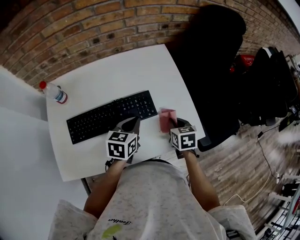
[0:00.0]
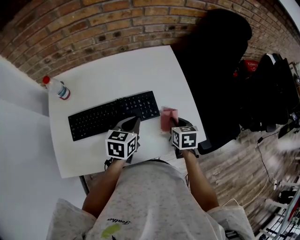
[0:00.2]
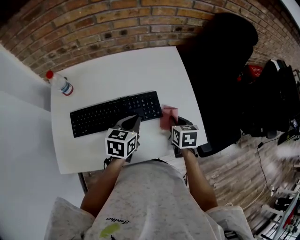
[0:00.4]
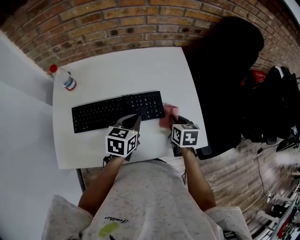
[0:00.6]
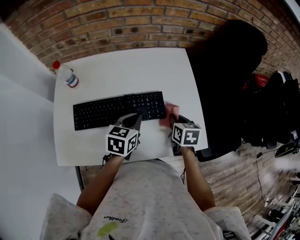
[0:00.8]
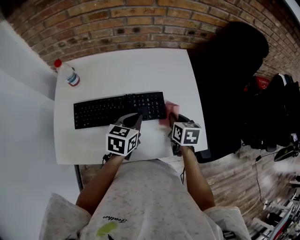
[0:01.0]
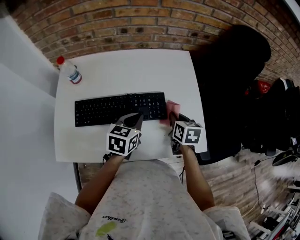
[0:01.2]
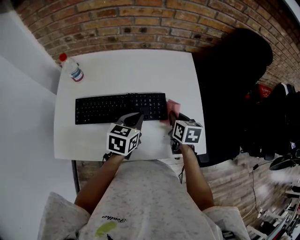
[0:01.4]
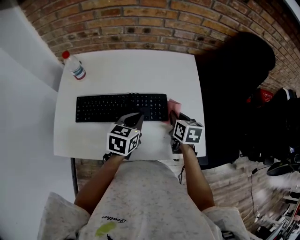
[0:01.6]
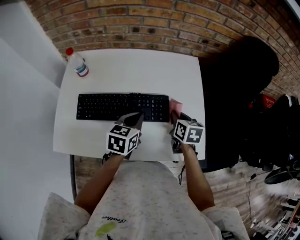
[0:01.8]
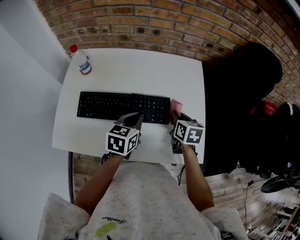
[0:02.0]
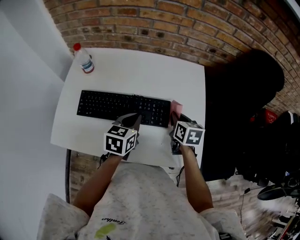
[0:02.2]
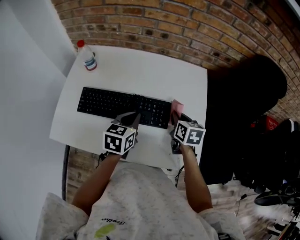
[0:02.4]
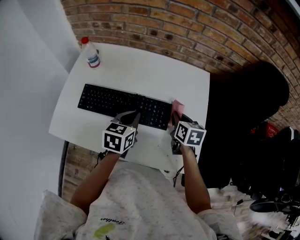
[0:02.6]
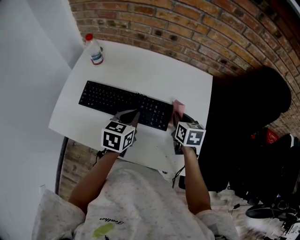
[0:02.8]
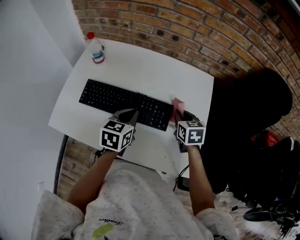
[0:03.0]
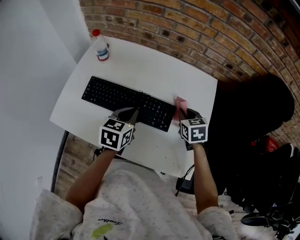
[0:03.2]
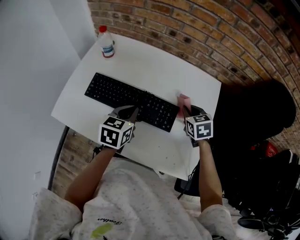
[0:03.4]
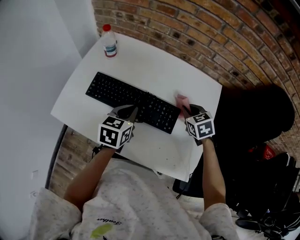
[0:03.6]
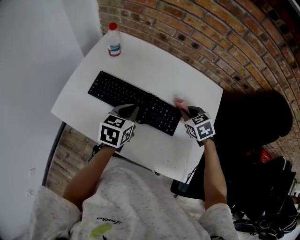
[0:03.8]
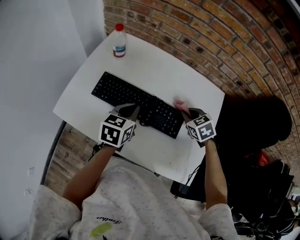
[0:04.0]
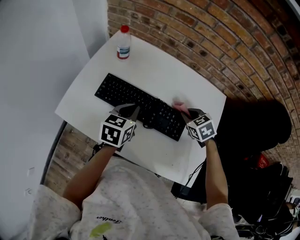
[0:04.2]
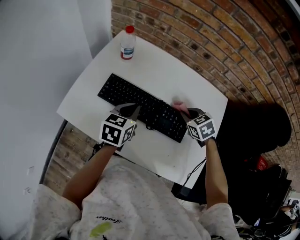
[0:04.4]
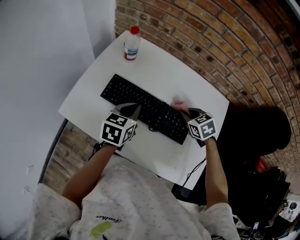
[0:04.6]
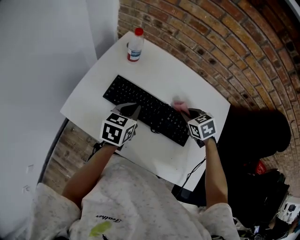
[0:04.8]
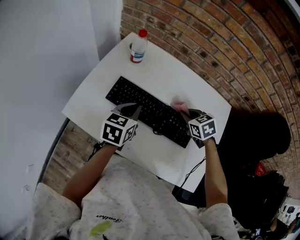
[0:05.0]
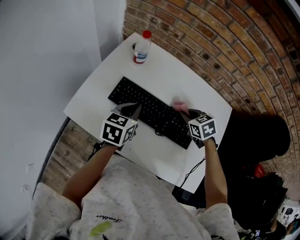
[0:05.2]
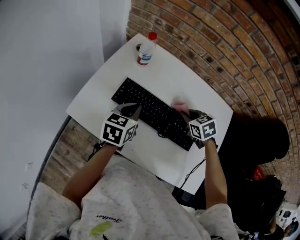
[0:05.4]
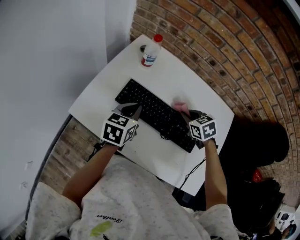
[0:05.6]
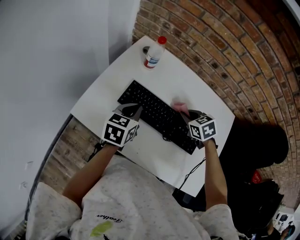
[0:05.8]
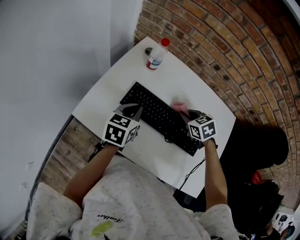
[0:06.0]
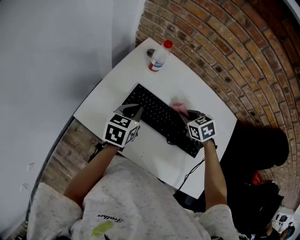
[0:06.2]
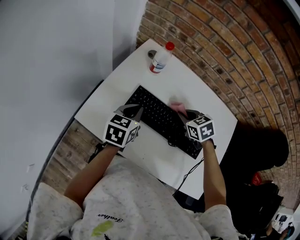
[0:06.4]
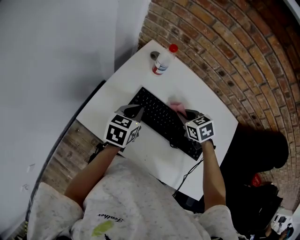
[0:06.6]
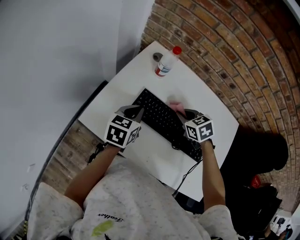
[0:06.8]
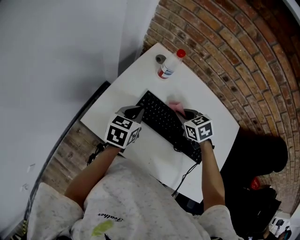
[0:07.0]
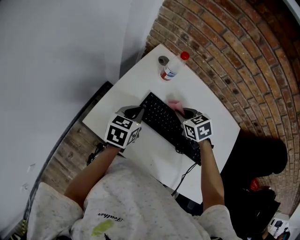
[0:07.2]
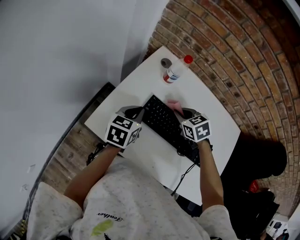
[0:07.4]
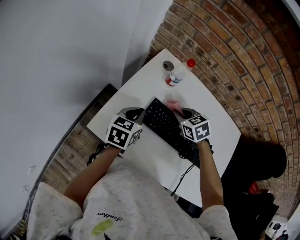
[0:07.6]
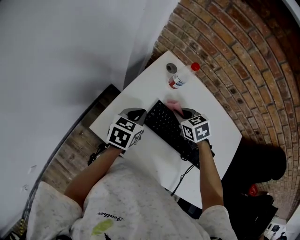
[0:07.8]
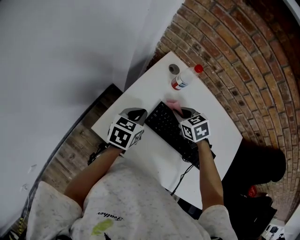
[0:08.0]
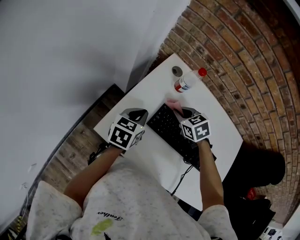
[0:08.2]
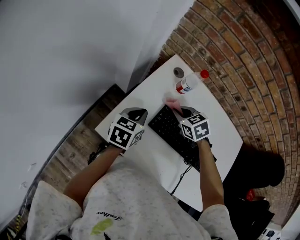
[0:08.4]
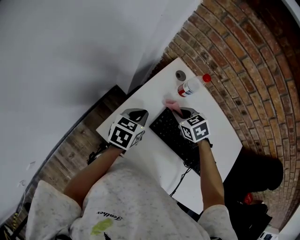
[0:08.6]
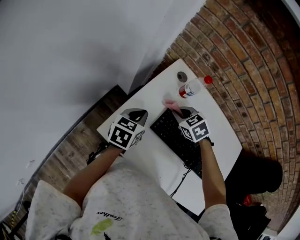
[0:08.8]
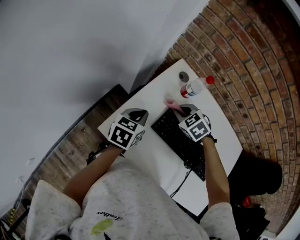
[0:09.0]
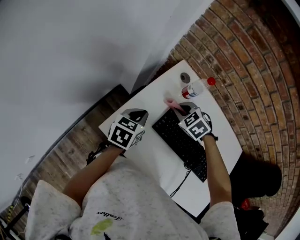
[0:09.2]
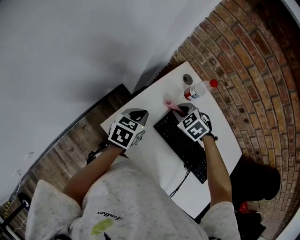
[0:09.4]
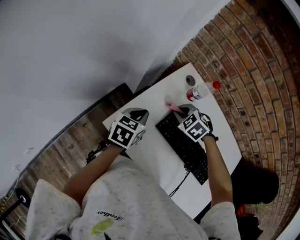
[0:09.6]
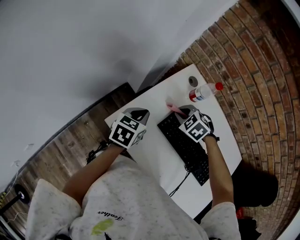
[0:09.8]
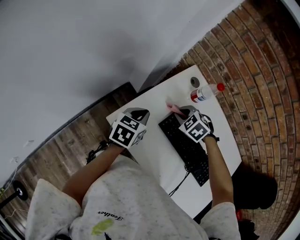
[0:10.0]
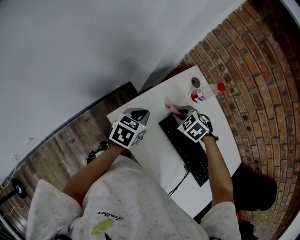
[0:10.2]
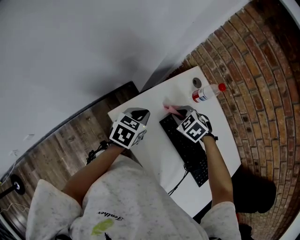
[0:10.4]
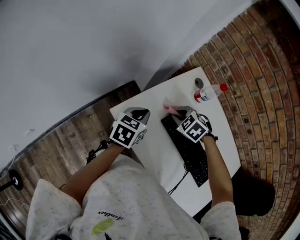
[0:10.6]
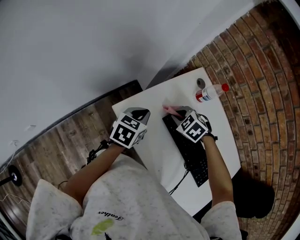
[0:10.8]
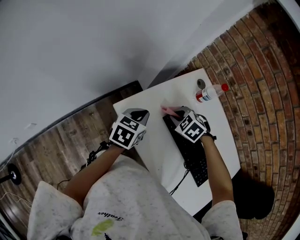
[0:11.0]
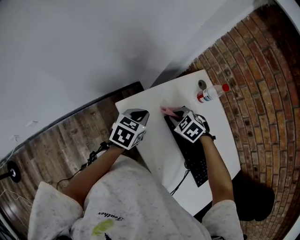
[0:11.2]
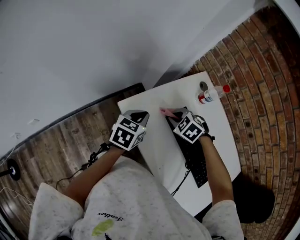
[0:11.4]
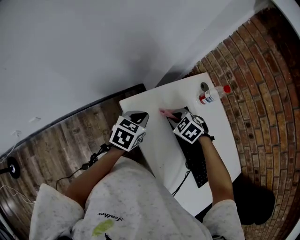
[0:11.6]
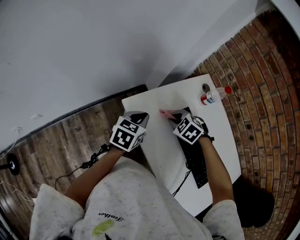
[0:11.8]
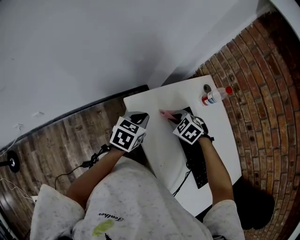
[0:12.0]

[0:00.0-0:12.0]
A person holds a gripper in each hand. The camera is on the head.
0:00.0 to 0:01.6: The right gripper goes roughly 10 cm forward and to the left.
0:01.6 to 0:03.0: The right gripper is displaced forward by some 5 cm, and changes its angle by some 30 degrees.
0:03.0 to 0:04.4: Both grippers travel together to the left, roughly 10 cm. The right gripper rotates some 40 degrees.
0:04.4 to 0:06.0: The right gripper moves to the left and forward, roughly 15 cm. Meanwhile the left gripper moves to the left, roughly 10 cm.
0:06.0 to 0:07.6: The left gripper is displaced to the left by roughly 10 cm; the right gripper travels to the left and forward by approximately 15 cm.
0:07.6 to 0:09.0: The grippers both shift to the left by roughly 5 cm. The right gripper turns by roughly 30 degrees.
0:09.0 to 0:10.4: The left gripper changes place by approximately 5 cm, while the right gripper shifts by roughly 5 cm, and changes its angle by about 20 degrees.
0:10.4 to 0:12.0: The left gripper heads backward, covering roughly 10 cm. Meanwhile the right gripper travels backward and to the left by some 10 cm.

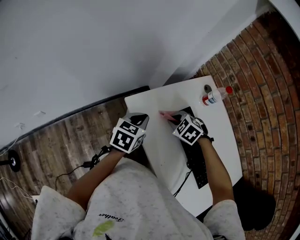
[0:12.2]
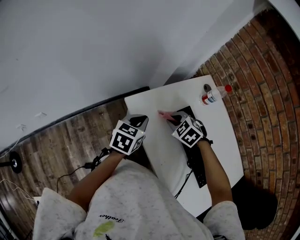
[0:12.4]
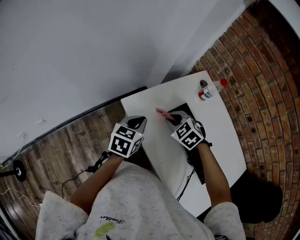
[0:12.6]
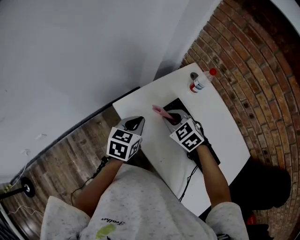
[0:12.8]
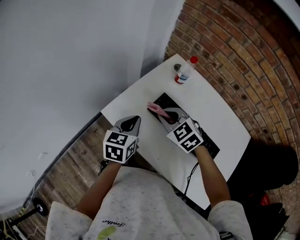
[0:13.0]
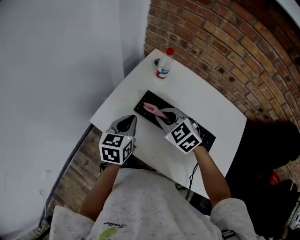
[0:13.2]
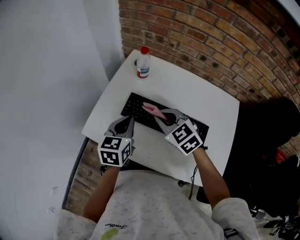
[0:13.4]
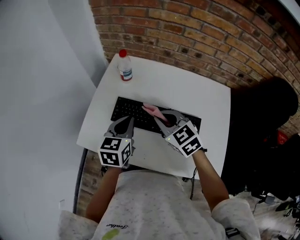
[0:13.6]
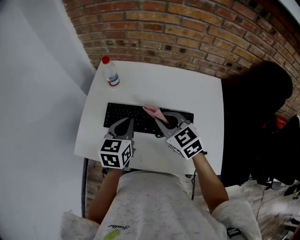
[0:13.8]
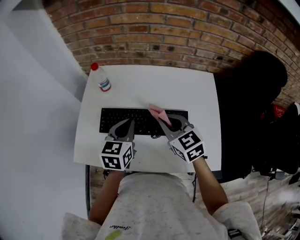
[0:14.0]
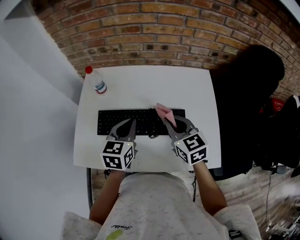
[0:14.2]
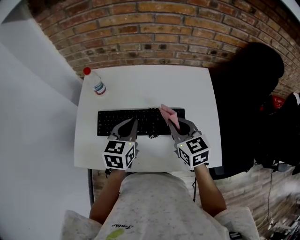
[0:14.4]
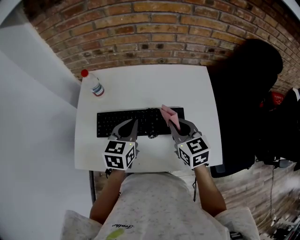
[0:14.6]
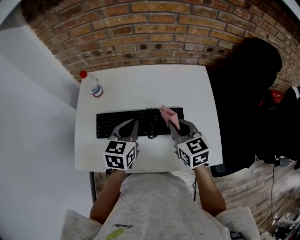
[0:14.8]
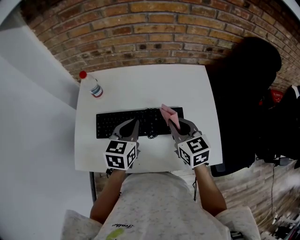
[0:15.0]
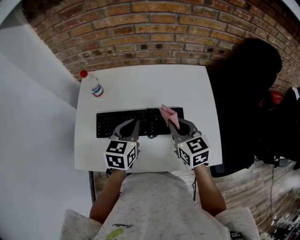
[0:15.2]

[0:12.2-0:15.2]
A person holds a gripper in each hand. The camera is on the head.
0:12.2 to 0:13.8: The left gripper moves approximately 25 cm, and swivels some 40 degrees; the right gripper ends up approximately 30 cm from where it was, and tips its fingers upward by about 40 degrees.
0:13.8 to 0:15.2: Both grippers travel together to the right, roughly 10 cm. The right gripper swivels roughly 30 degrees.

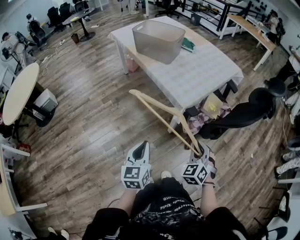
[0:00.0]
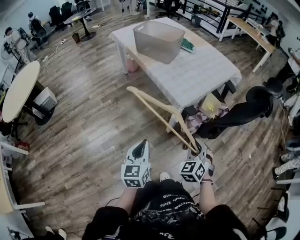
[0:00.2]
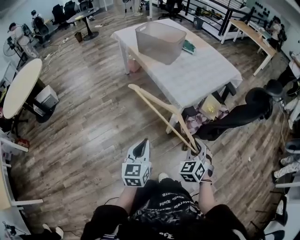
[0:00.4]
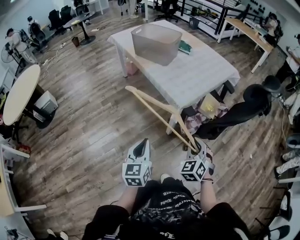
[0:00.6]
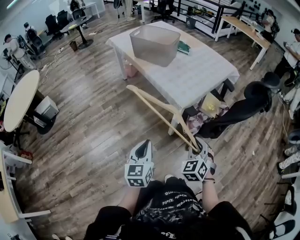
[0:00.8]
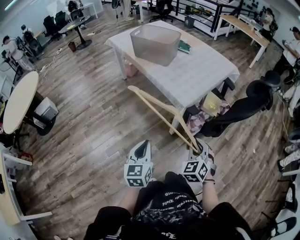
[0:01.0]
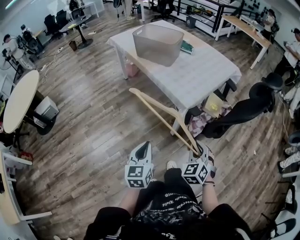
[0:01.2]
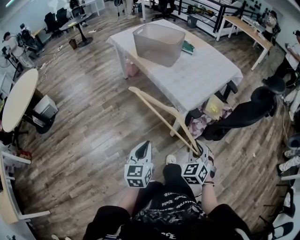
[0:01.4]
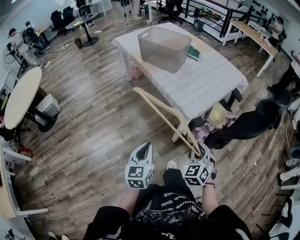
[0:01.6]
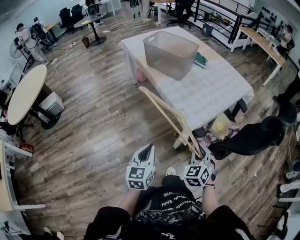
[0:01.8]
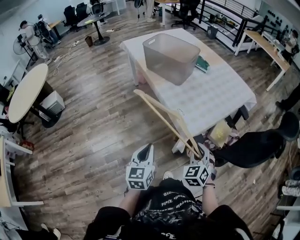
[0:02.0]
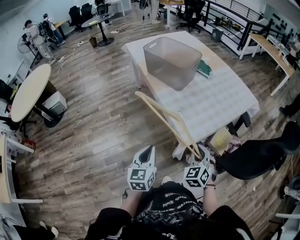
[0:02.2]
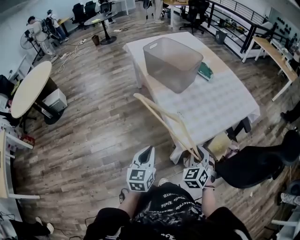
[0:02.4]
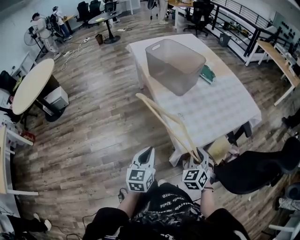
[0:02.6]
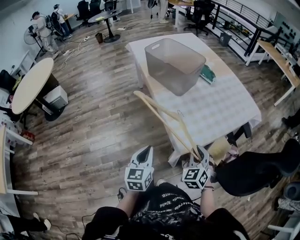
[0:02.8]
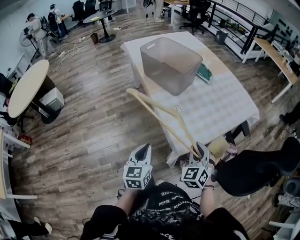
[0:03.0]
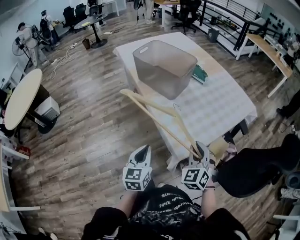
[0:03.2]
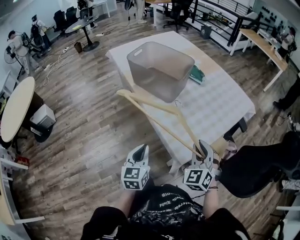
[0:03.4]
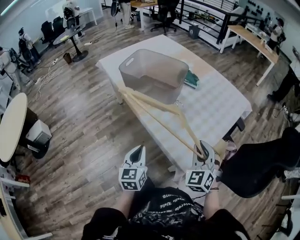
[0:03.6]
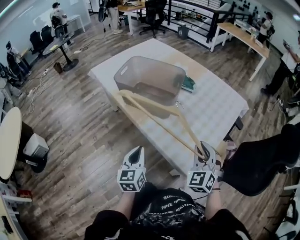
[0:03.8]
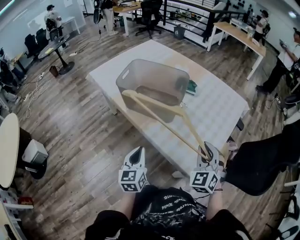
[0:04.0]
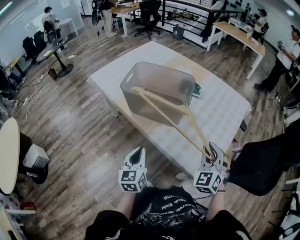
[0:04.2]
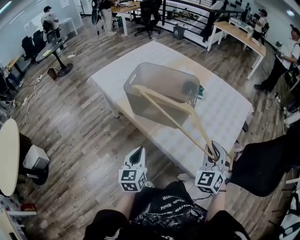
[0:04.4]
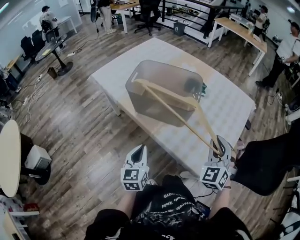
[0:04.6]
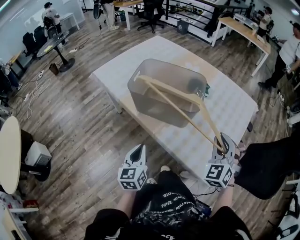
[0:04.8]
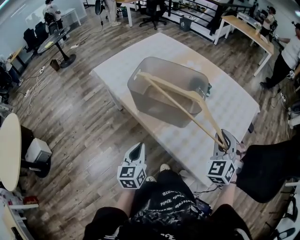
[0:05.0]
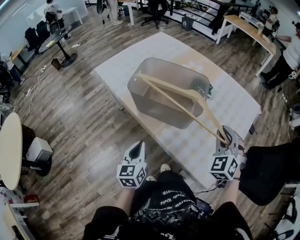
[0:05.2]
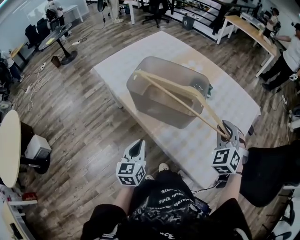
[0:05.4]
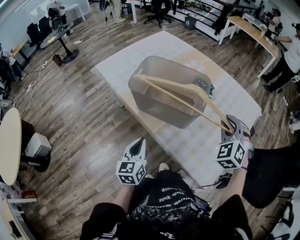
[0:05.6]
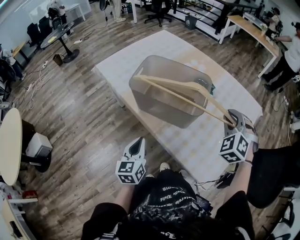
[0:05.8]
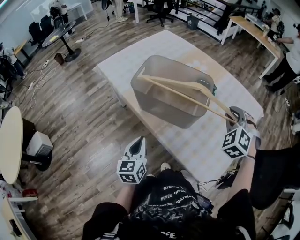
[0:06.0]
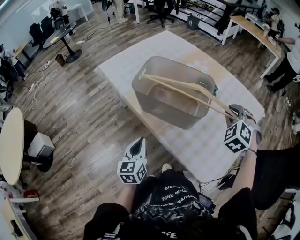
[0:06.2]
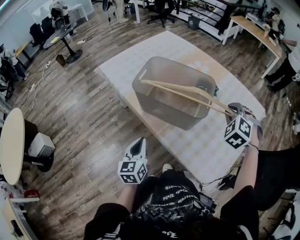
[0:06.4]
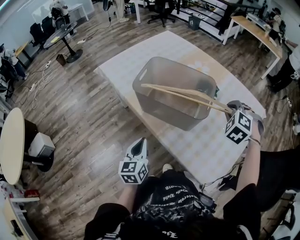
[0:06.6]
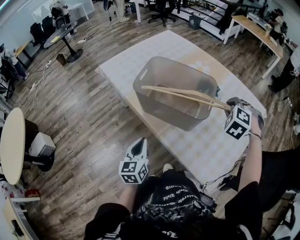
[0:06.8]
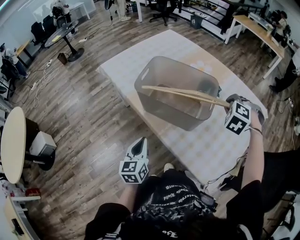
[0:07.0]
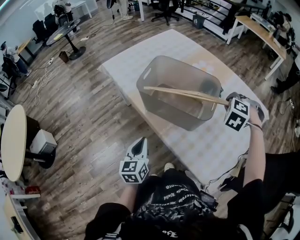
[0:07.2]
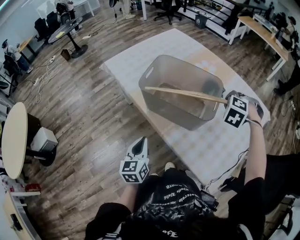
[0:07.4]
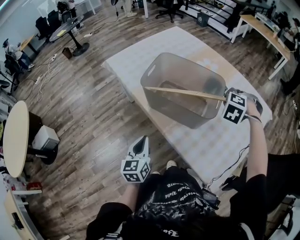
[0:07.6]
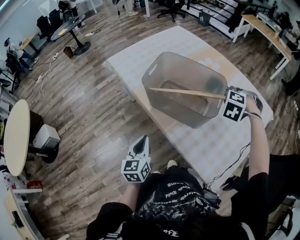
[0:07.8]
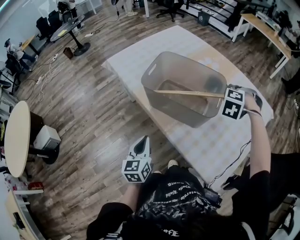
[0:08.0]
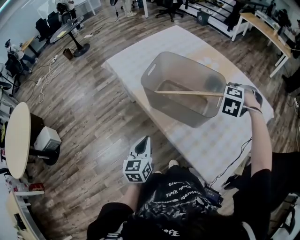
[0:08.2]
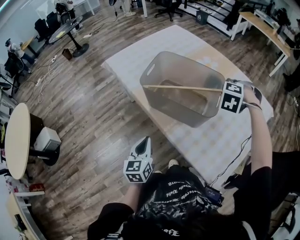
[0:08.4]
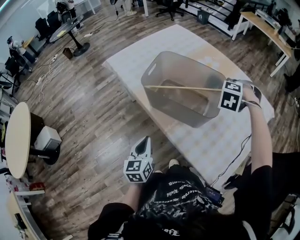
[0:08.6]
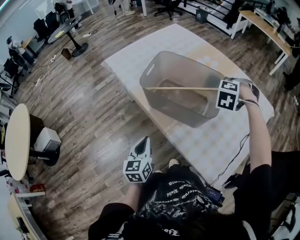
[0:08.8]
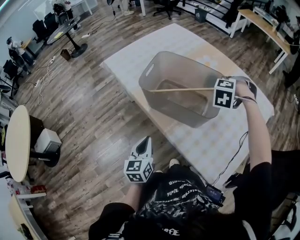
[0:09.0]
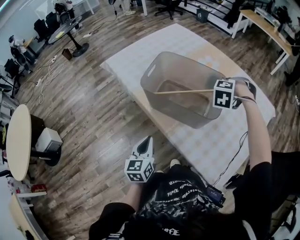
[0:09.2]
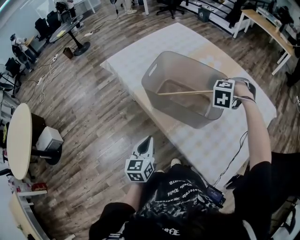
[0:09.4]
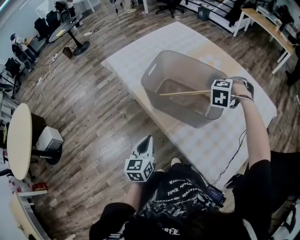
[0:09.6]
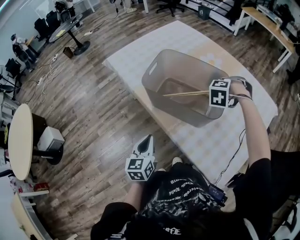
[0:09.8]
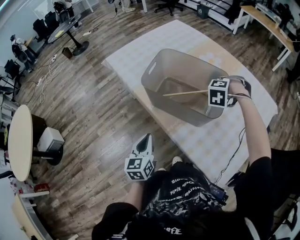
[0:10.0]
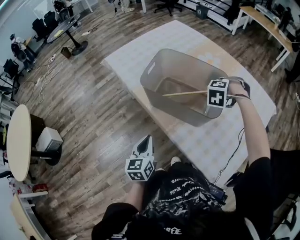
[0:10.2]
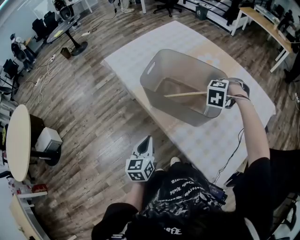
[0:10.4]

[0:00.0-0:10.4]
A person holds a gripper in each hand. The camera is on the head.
0:00.0 to 0:01.4: The right gripper goes some 5 cm to the left.
0:01.4 to 0:03.0: Both grippers move forward, some 35 cm.
0:03.0 to 0:04.4: Both grippers move forward and to the left, some 35 cm. The right gripper changes its angle by some 30 degrees.
0:04.4 to 0:06.0: The left gripper moves forward, about 10 cm. The right gripper is displaced forward by approximately 20 cm, and swivels some 30 degrees.
0:06.0 to 0:07.4: The right gripper travels forward and downward by some 10 cm, and swivels approximately 30 degrees.
0:07.4 to 0:09.0: The right gripper moves approximately 5 cm.
0:09.0 to 0:10.4: The right gripper changes place by approximately 5 cm.
